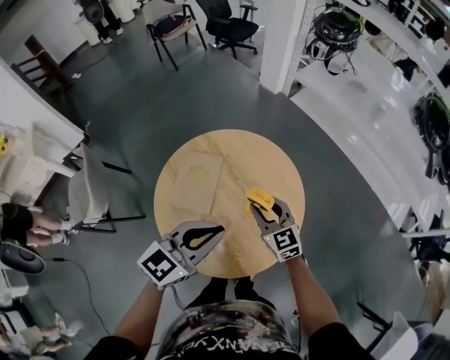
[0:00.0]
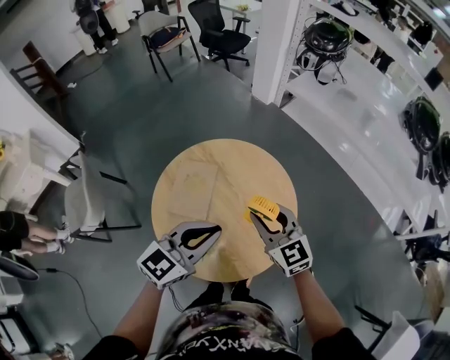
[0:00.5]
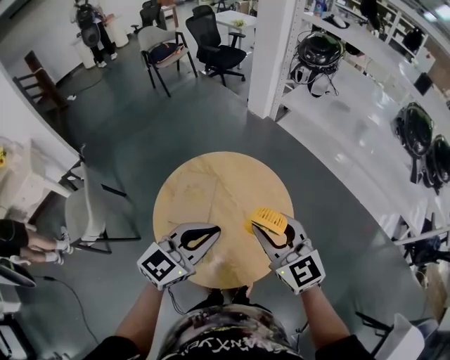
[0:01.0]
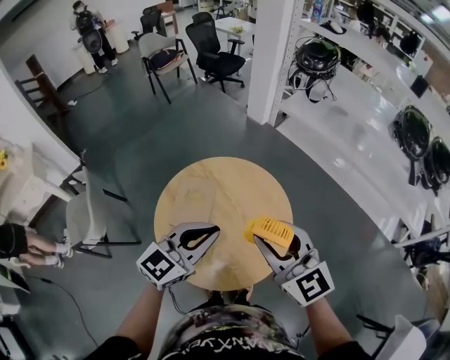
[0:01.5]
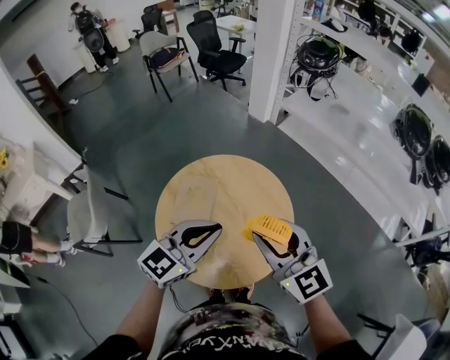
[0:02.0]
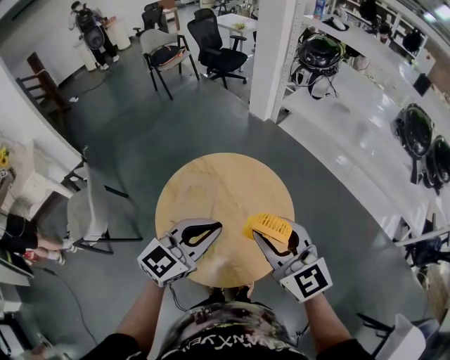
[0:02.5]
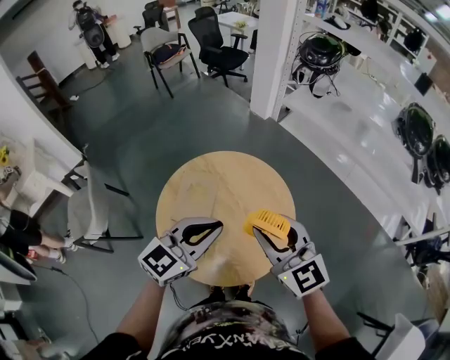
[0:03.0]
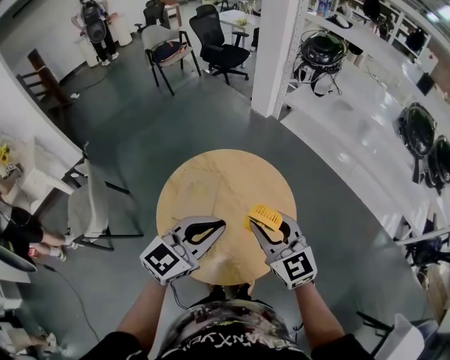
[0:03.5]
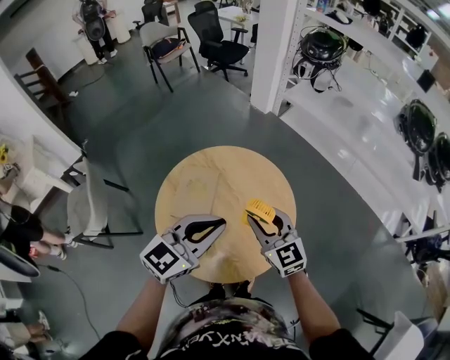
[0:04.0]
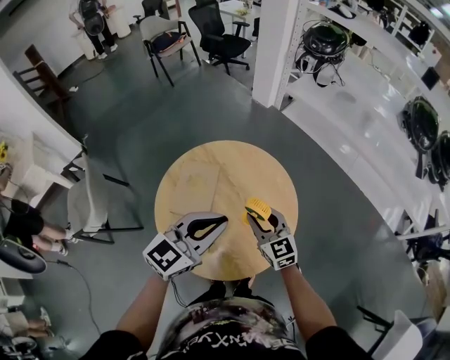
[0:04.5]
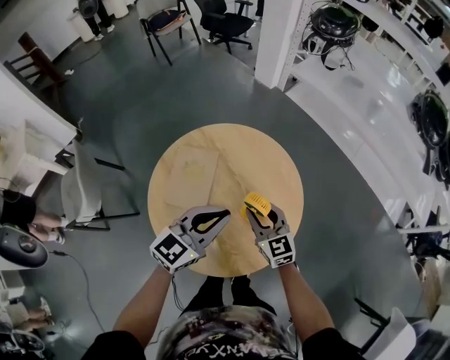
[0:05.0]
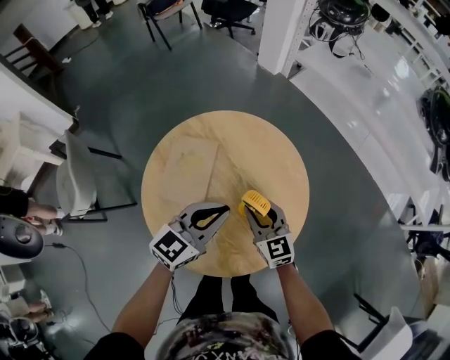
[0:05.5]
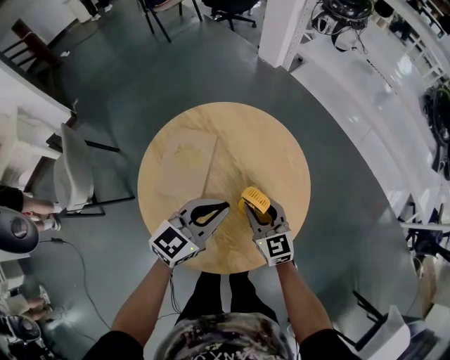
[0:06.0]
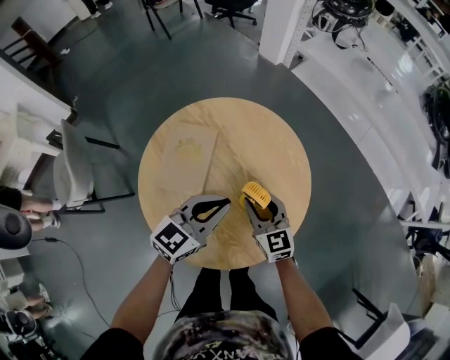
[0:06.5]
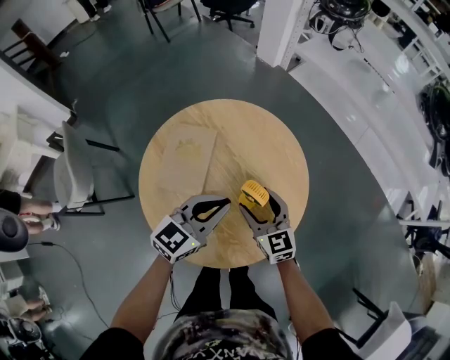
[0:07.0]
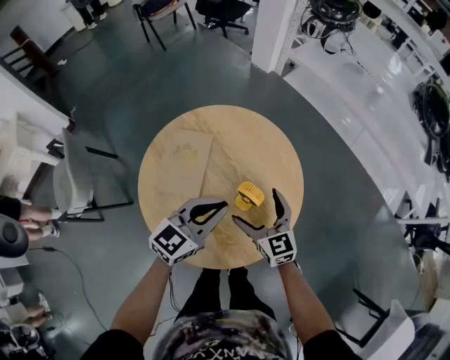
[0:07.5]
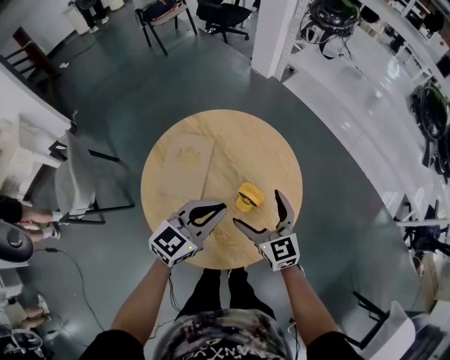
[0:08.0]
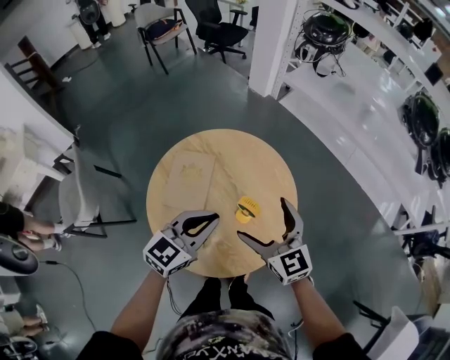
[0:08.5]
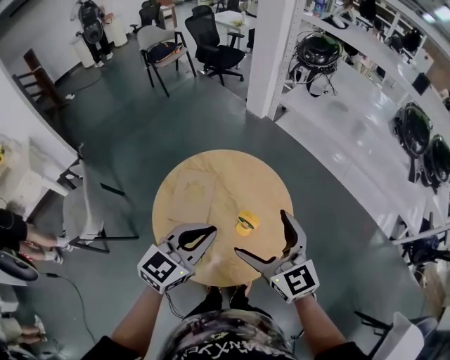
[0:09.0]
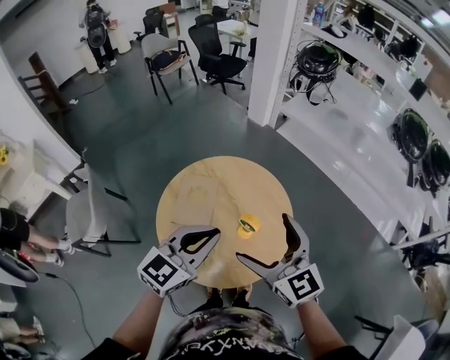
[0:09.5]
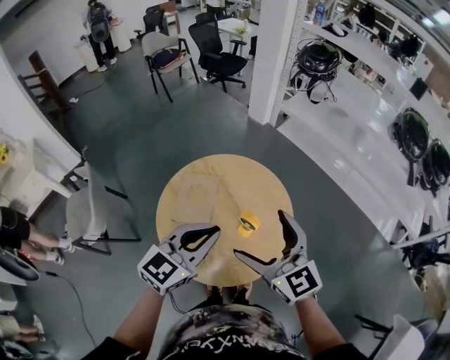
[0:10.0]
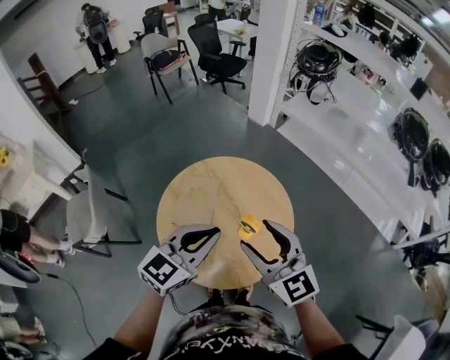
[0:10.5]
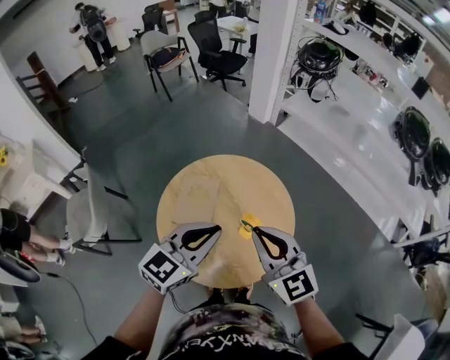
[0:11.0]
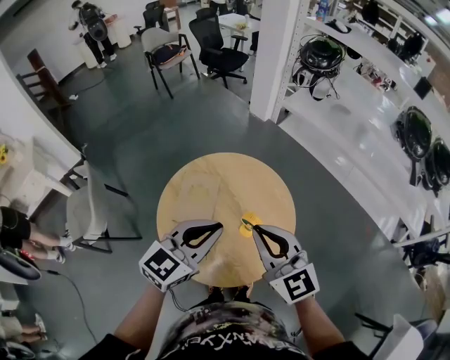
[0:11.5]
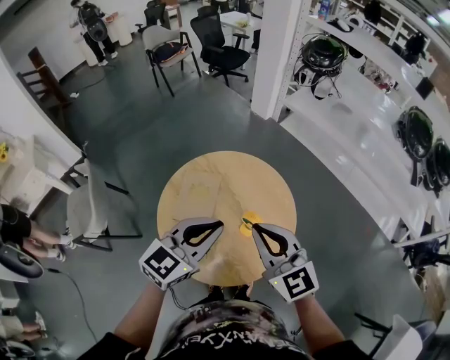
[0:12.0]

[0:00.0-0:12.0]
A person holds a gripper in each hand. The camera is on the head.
0:00.0 to 0:02.0: The right gripper is displaced upward by about 25 cm; the left gripper goes about 5 cm upward.
0:02.0 to 0:04.0: The right gripper moves downward, approximately 15 cm.
0:04.0 to 0:06.0: Both grippers move downward, roughly 20 cm.
0:06.0 to 0:08.0: The right gripper travels upward by roughly 5 cm, and opens its fingers.
0:08.0 to 0:10.0: Both grippers travel together upward, approximately 20 cm.
0:10.0 to 0:12.0: The right gripper closes up.

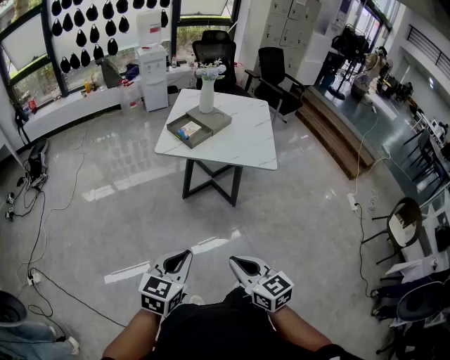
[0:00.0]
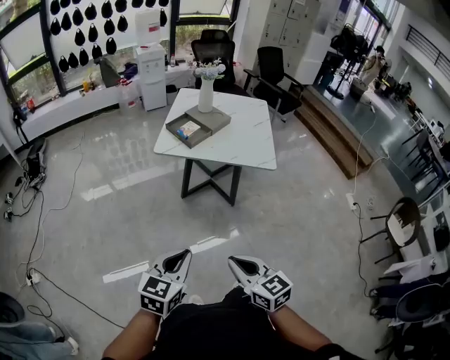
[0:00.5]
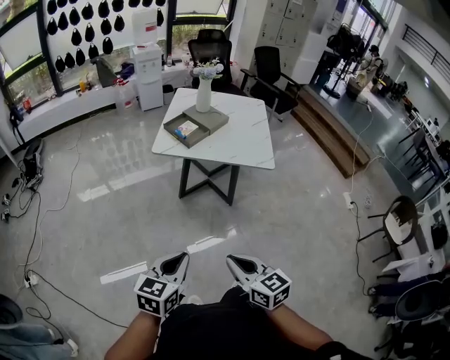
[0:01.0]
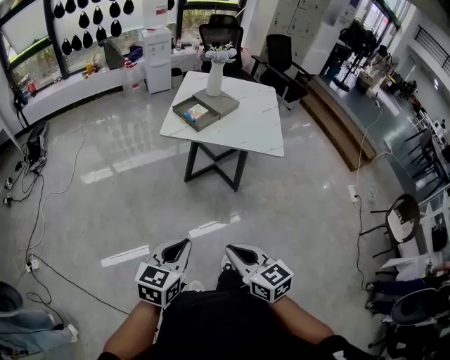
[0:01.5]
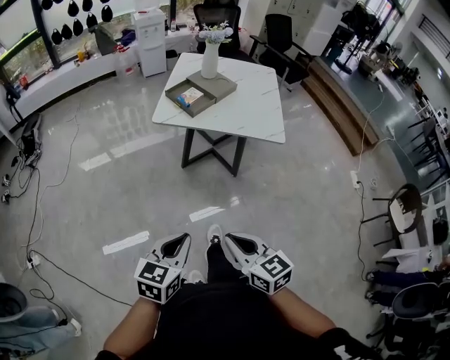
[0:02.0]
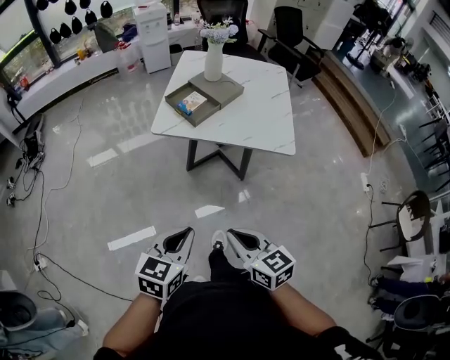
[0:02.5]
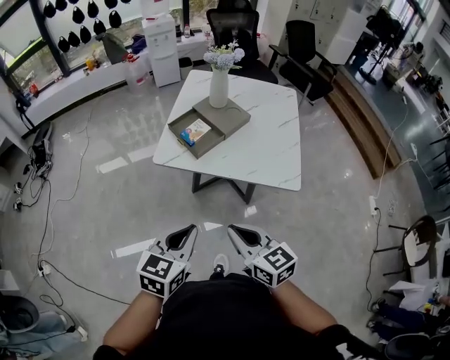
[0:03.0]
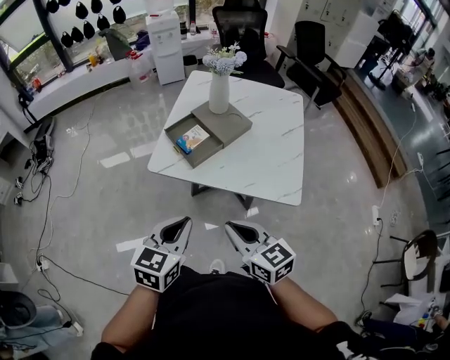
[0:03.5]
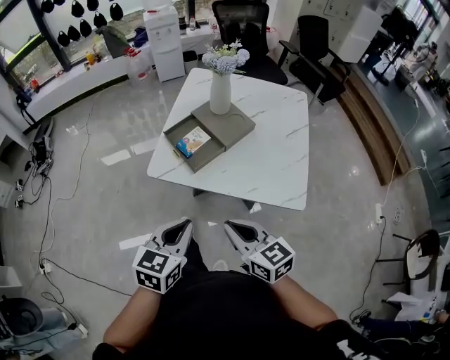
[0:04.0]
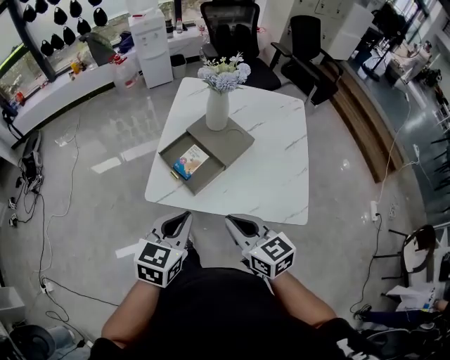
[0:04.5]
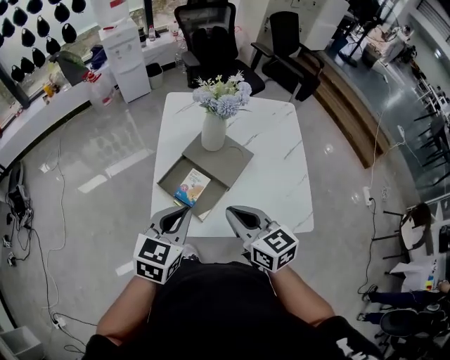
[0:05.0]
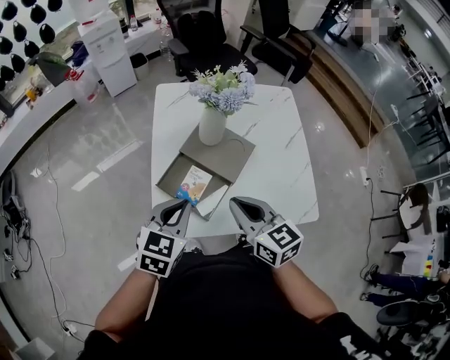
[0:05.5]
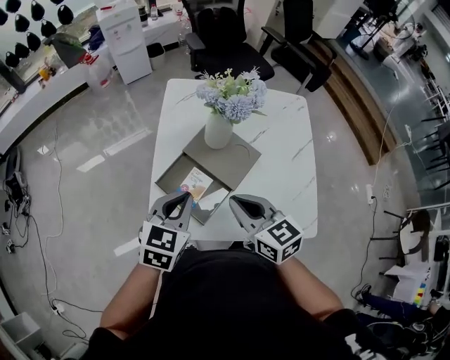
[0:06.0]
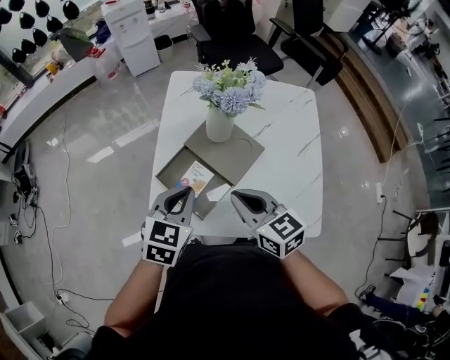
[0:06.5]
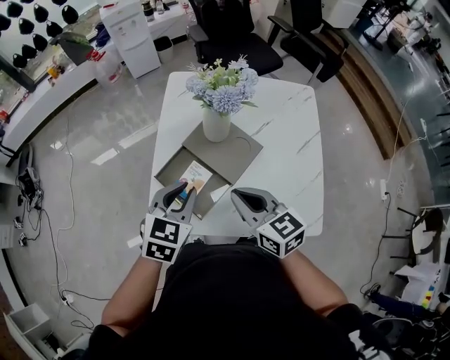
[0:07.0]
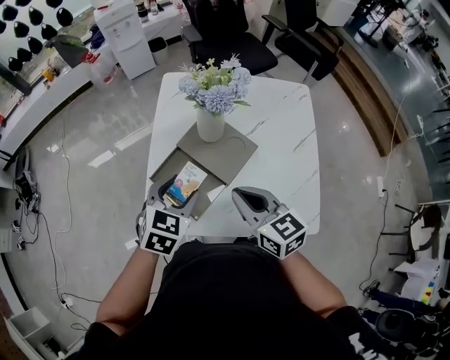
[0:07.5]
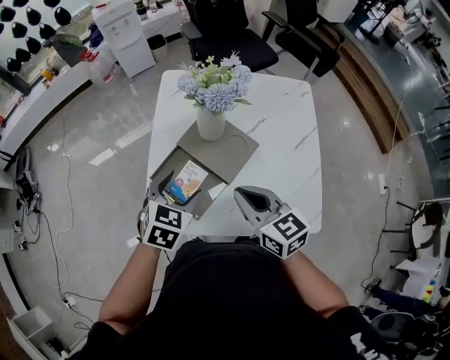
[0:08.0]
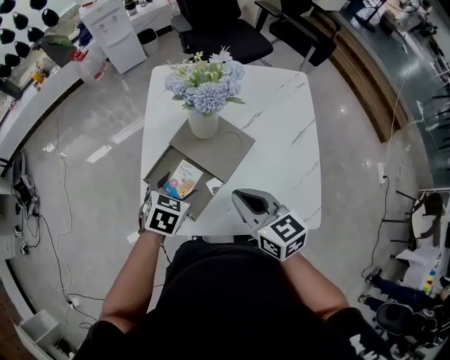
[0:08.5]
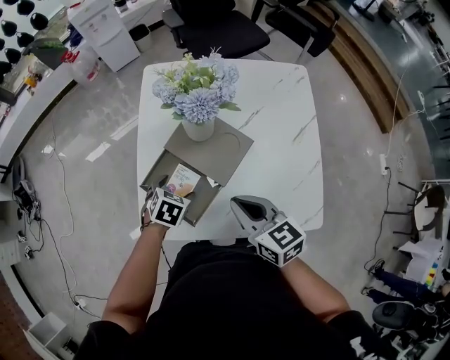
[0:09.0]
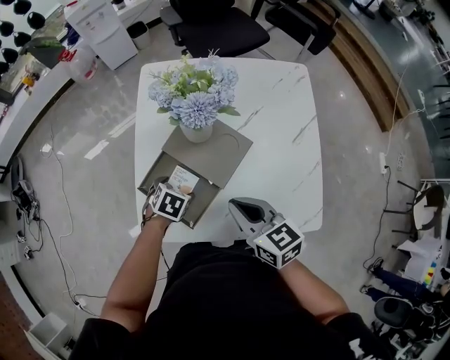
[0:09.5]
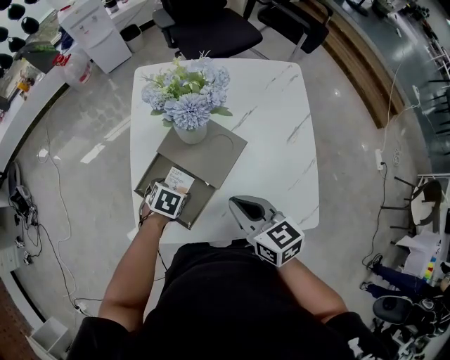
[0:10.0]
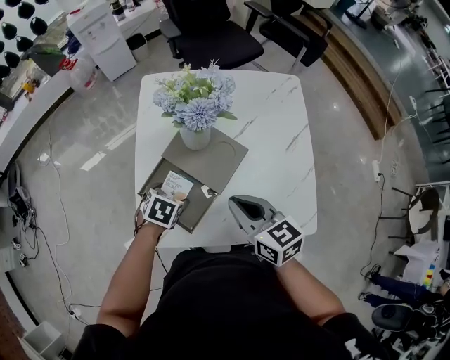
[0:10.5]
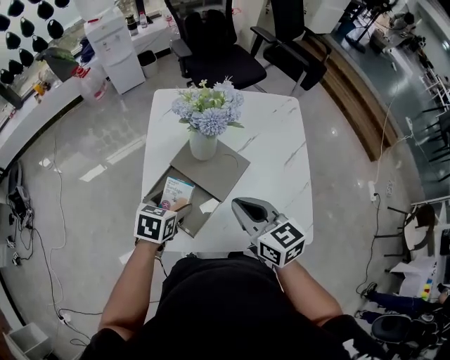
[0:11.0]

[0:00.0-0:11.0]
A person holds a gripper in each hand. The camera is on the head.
0:00.0 to 0:02.0: The right gripper changes place by about 5 cm.
0:02.0 to 0:03.5: Both grippers move forward, about 35 cm.
0:03.5 to 0:05.5: Both grippers move forward, about 30 cm. The right gripper rotates approximately 20 degrees, while the left gripper turns by some 20 degrees.
0:05.5 to 0:07.5: Both grippers move to the right, about 5 cm. The left gripper opens.
0:07.5 to 0:09.0: The left gripper travels downward by roughly 15 cm, rotates about 30 degrees, and opens its fingers.
0:09.0 to 0:11.0: The right gripper travels upward by approximately 5 cm; the left gripper heads upward, covering approximately 10 cm, and swivels roughly 20 degrees.

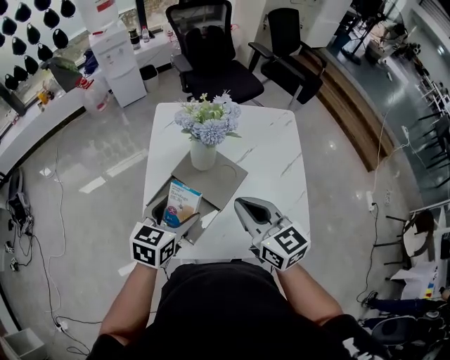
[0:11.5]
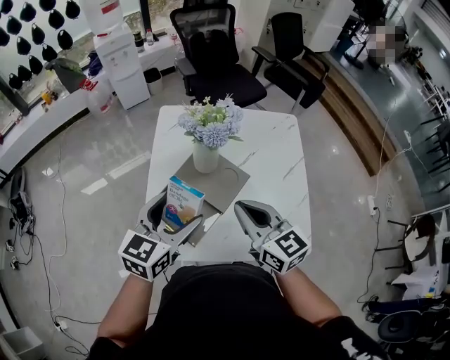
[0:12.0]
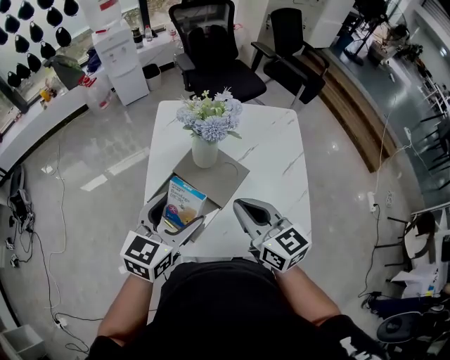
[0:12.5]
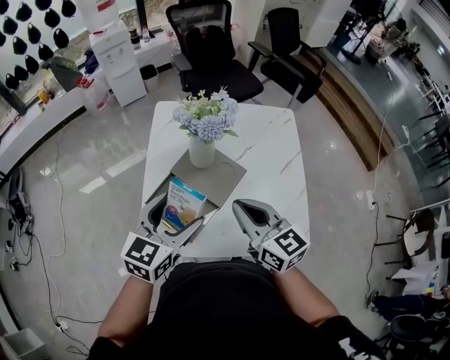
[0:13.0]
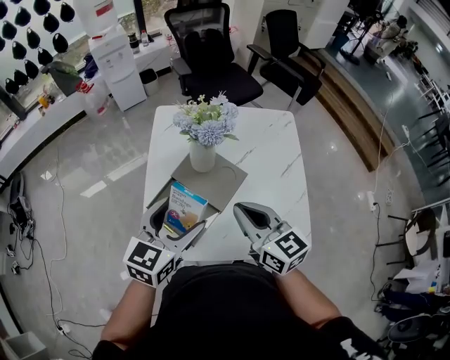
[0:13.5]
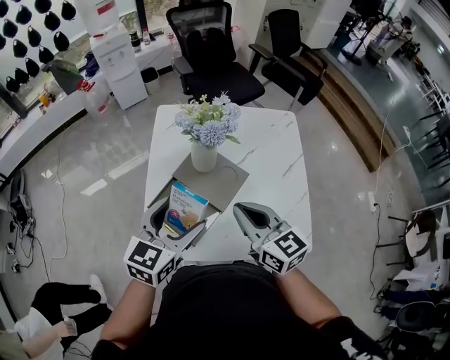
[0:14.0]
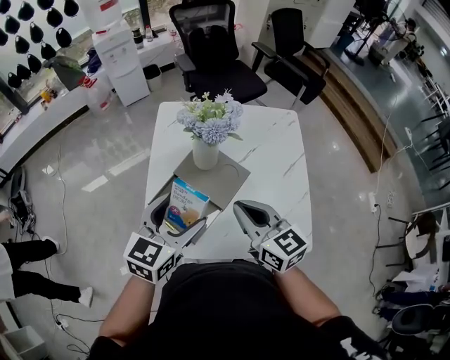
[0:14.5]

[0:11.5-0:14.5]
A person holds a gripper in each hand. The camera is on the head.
0:11.5 to 0:13.0: The left gripper heads upward, covering approximately 5 cm.
0:13.0 to 0:14.5: Both grippers stay about where they are.

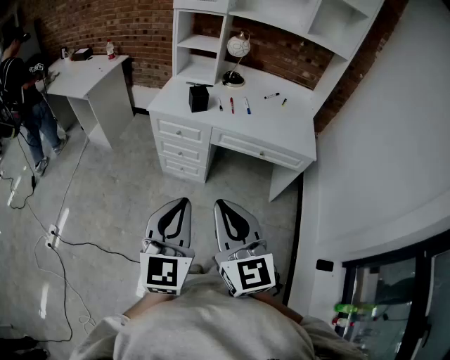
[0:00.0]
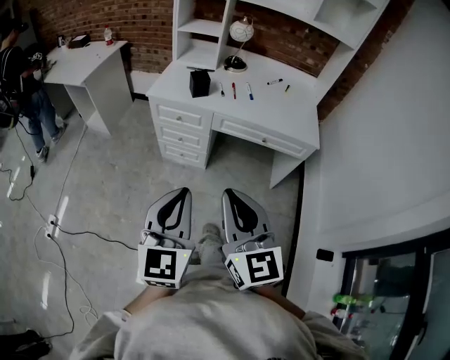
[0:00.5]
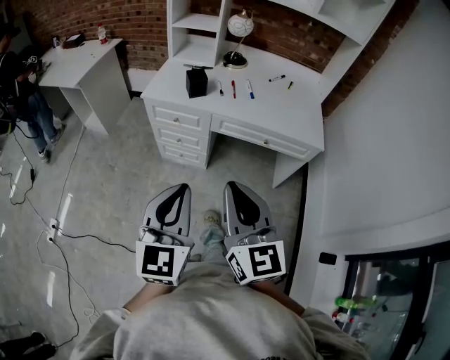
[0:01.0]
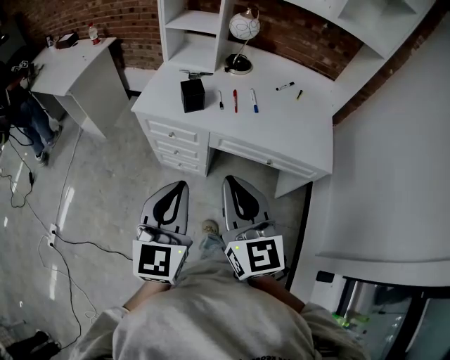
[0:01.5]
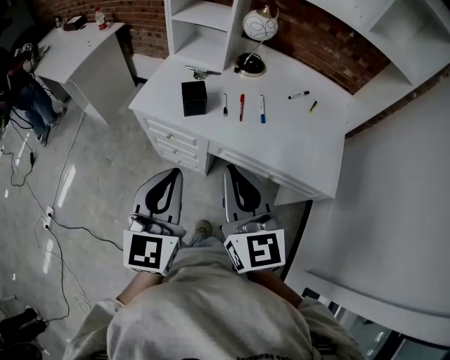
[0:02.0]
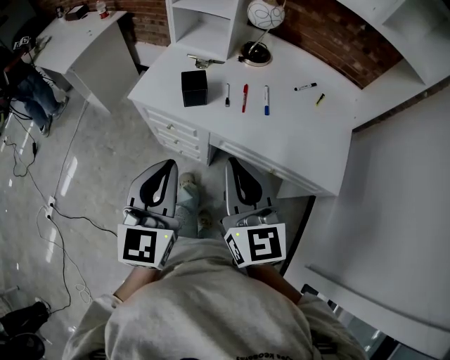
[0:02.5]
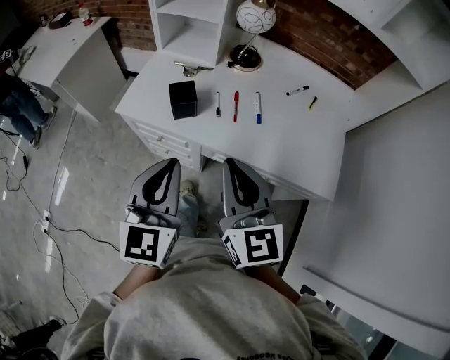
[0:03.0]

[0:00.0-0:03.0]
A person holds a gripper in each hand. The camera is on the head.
0:00.0 to 0:01.5: Both grippers travel together forward, approximately 25 cm.
0:01.5 to 0:03.0: The grippers both shift forward by roughly 20 cm.
